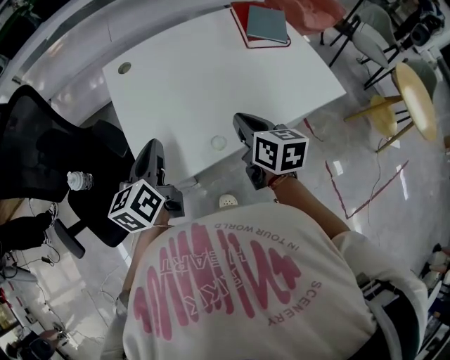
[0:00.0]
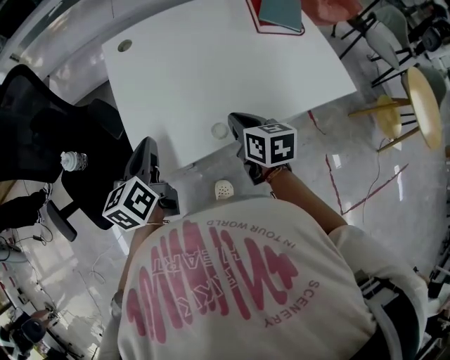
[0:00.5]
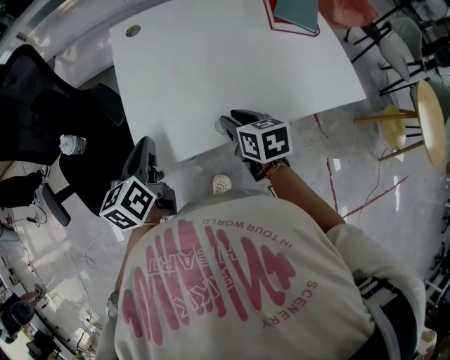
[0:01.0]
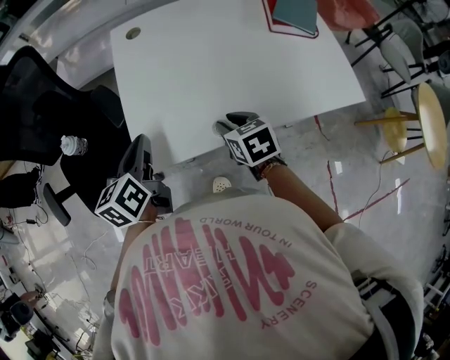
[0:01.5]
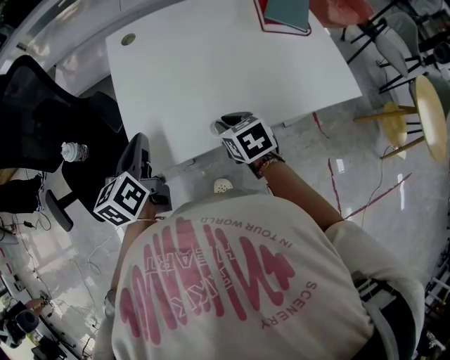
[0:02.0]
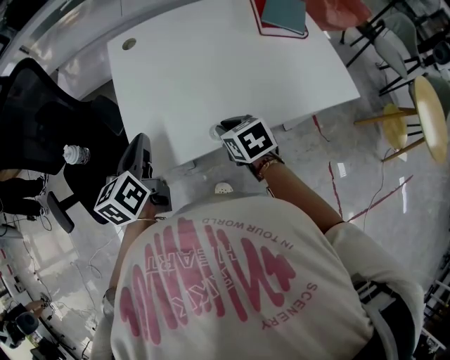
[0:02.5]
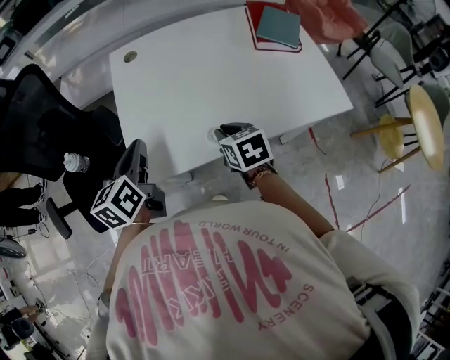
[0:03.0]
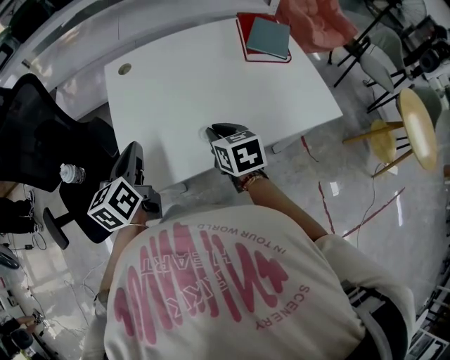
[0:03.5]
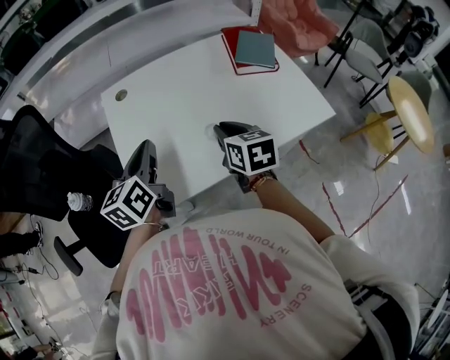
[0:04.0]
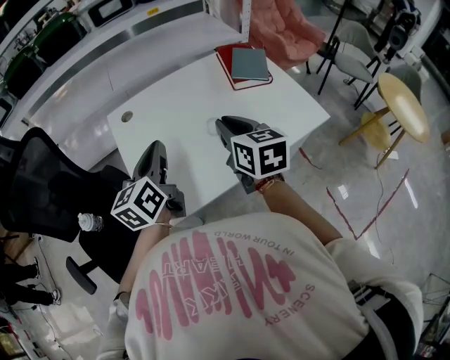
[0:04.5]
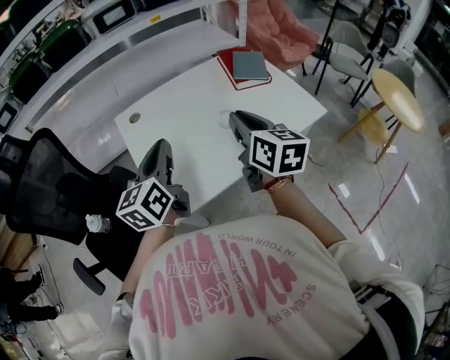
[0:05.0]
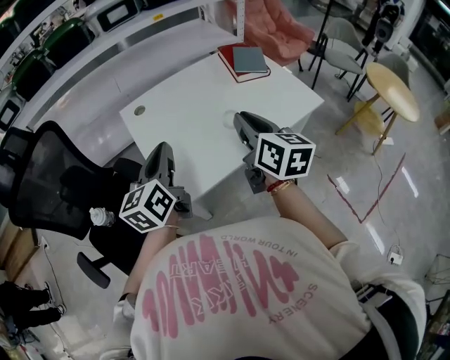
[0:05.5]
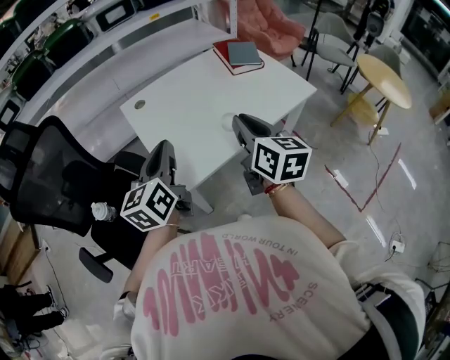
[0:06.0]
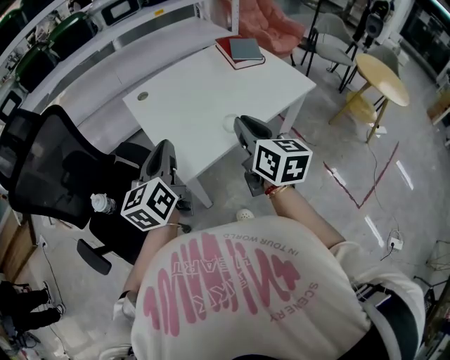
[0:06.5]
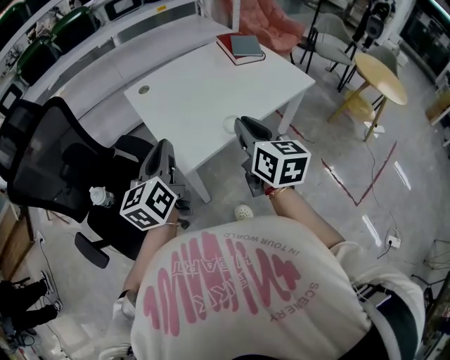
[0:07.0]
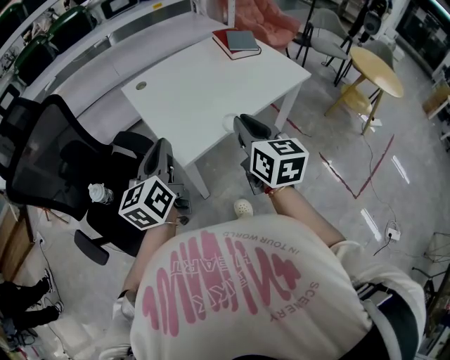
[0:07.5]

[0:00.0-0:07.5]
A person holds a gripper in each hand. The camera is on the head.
0:00.0 to 0:02.0: The right gripper shifts approximately 15 cm downward and to the left, and turns by approximately 40 degrees, while the left gripper changes place by approximately 5 cm.
0:02.0 to 0:04.0: Both grippers travel together upward and to the right, roughly 15 cm. The right gripper turns by some 30 degrees.
0:04.0 to 0:05.5: The left gripper travels backward, upward and to the left by about 15 cm; the right gripper moves upward and backward, about 20 cm, and turns by some 30 degrees.
0:05.5 to 0:07.5: Both grippers travel together backward, about 20 cm.

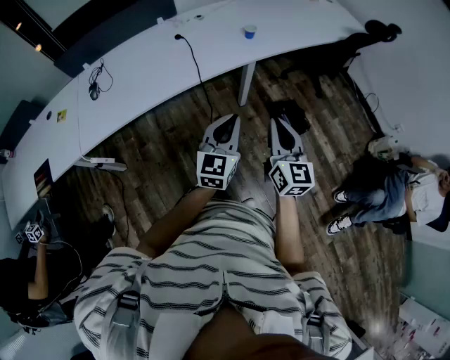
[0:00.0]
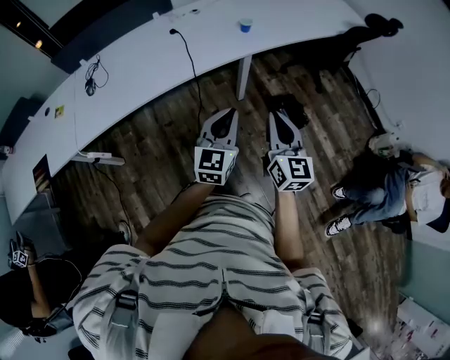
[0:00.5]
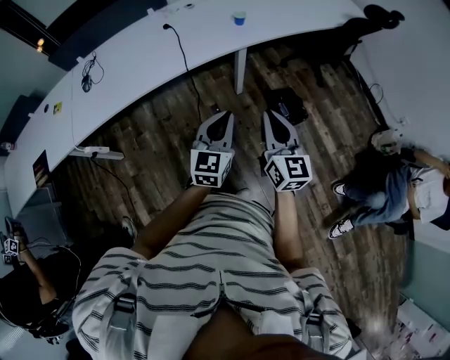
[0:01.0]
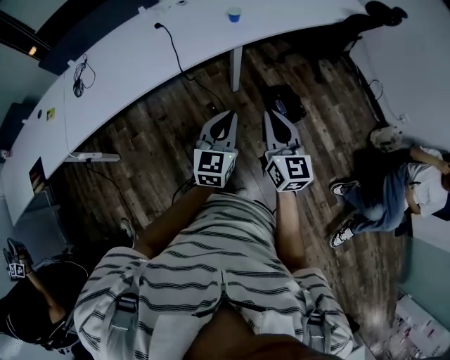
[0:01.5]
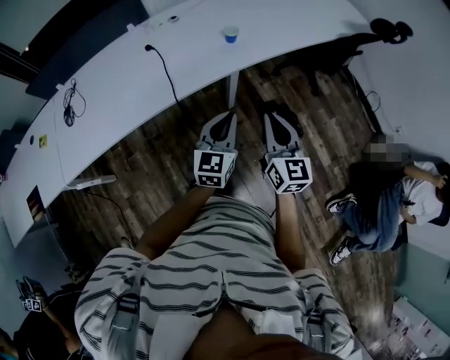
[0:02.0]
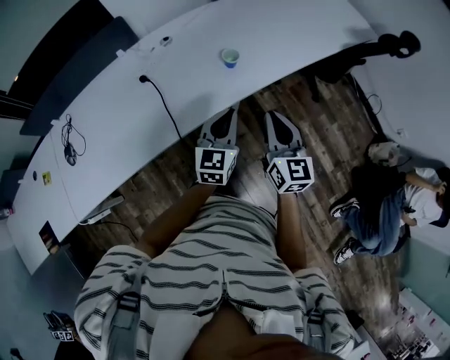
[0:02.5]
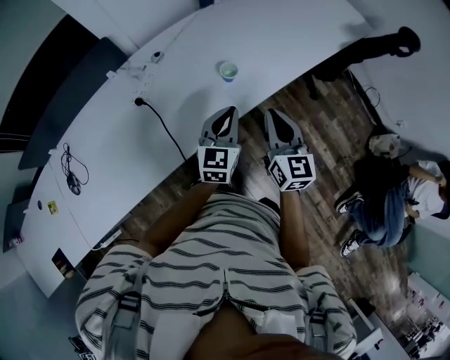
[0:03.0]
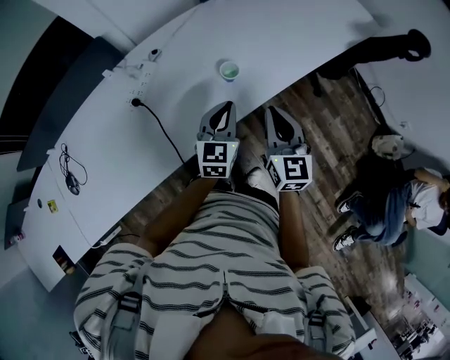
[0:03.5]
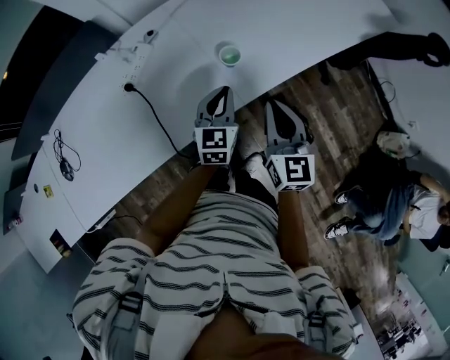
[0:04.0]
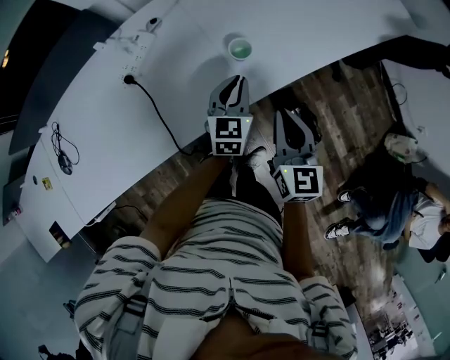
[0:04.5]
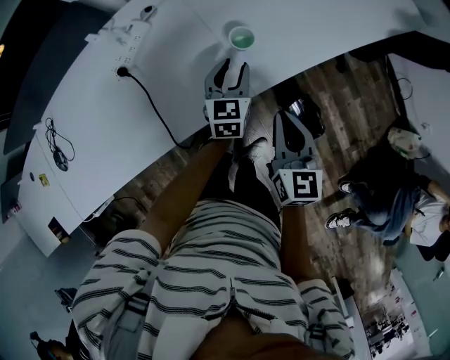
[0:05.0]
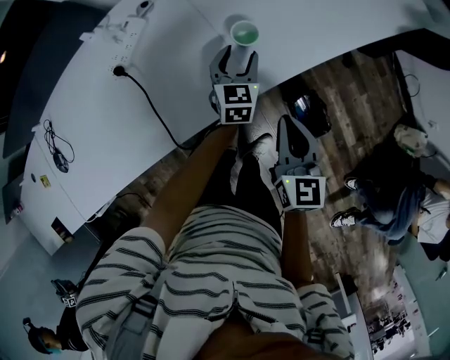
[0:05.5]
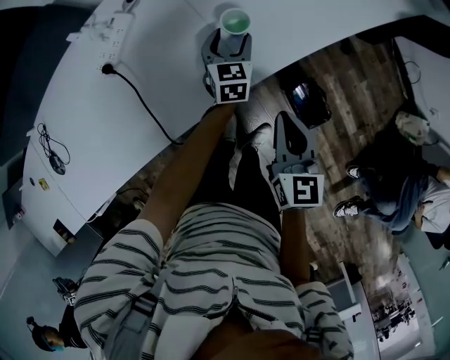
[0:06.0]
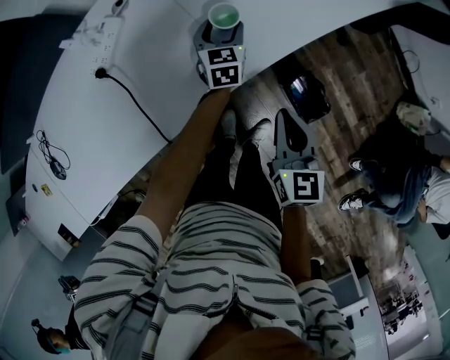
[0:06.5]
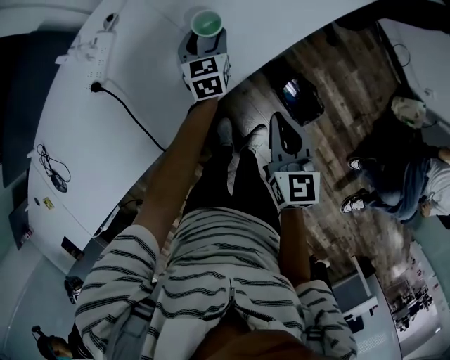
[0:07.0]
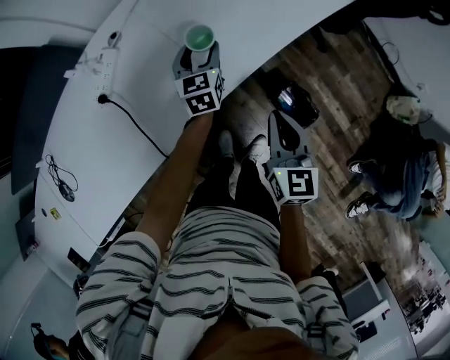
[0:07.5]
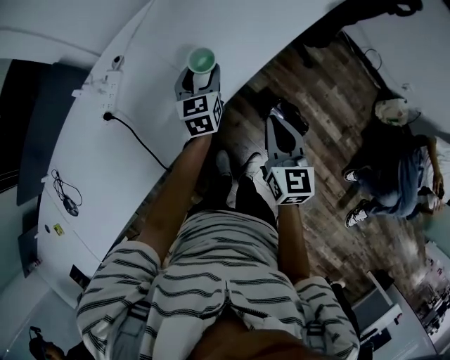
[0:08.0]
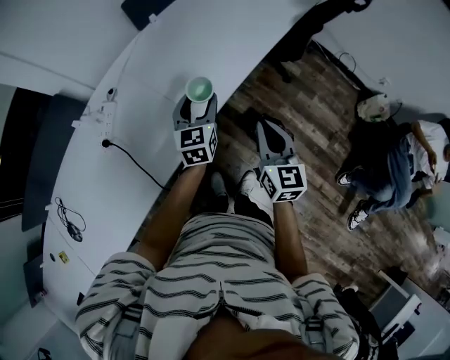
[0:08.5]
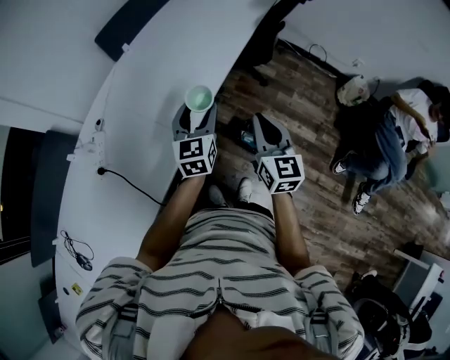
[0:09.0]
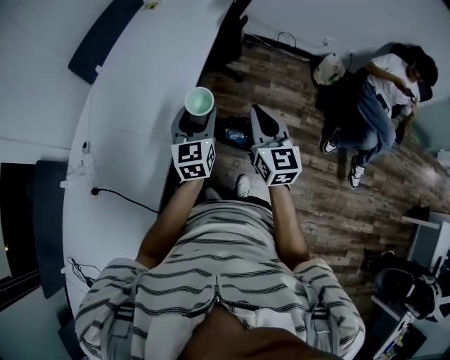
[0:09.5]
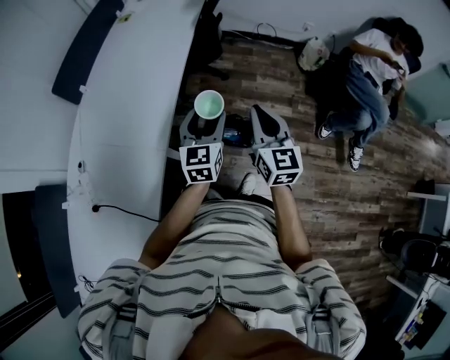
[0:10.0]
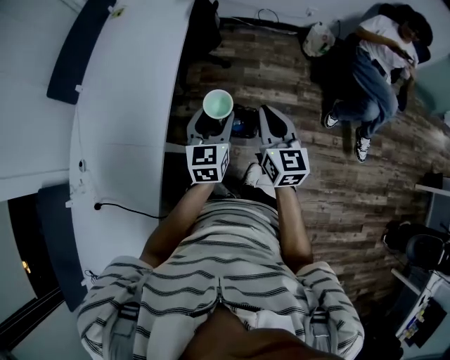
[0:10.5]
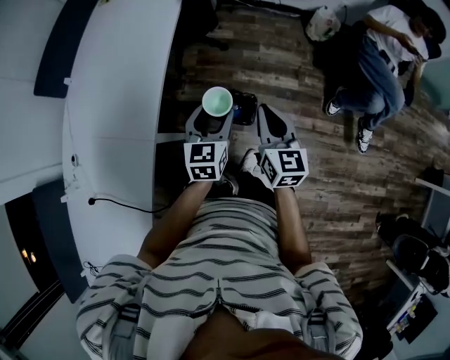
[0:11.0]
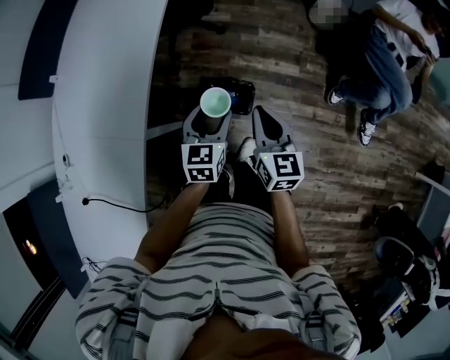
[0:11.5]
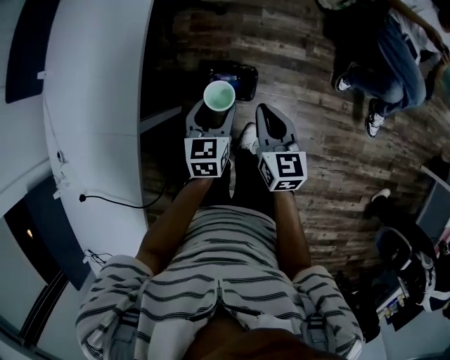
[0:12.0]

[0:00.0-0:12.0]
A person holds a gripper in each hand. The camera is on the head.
0:00.0 to 0:02.0: The left gripper is displaced forward and to the right by roughly 20 cm; the right gripper moves forward, about 20 cm.
0:02.0 to 0:04.0: Both grippers move forward, approximately 30 cm.
0:04.0 to 0:06.0: The right gripper goes about 10 cm downward. Meanwhile the left gripper heads downward and forward, covering some 20 cm, and opens.
0:06.0 to 0:08.0: The left gripper travels upward by roughly 15 cm, while the right gripper heads to the right and upward, covering roughly 10 cm.
0:08.0 to 0:10.0: The right gripper ends up about 20 cm from where it was, and swivels some 30 degrees, while the left gripper ends up about 30 cm from where it was, and changes its angle by some 40 degrees.
0:10.0 to 0:12.0: Both grippers travel together downward and to the right, some 20 cm. The left gripper turns by about 20 degrees, while the right gripper rotates about 20 degrees.

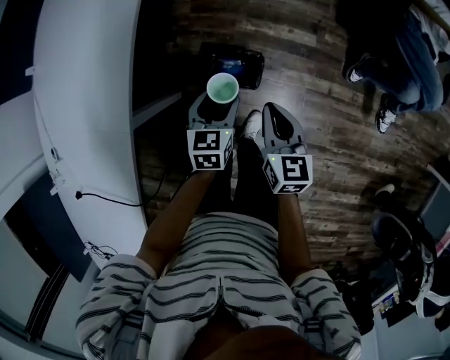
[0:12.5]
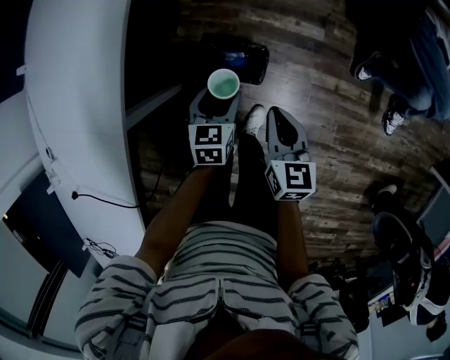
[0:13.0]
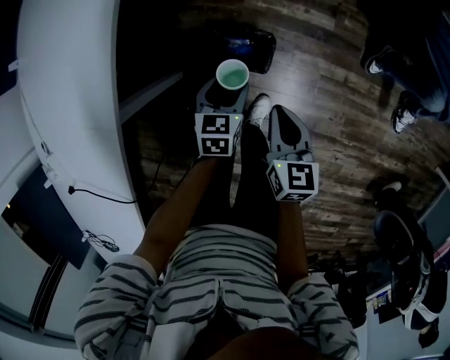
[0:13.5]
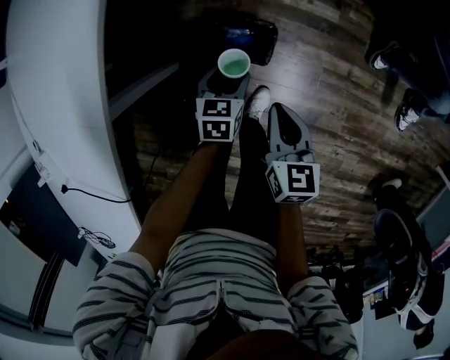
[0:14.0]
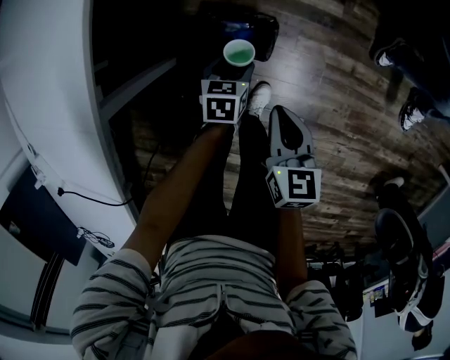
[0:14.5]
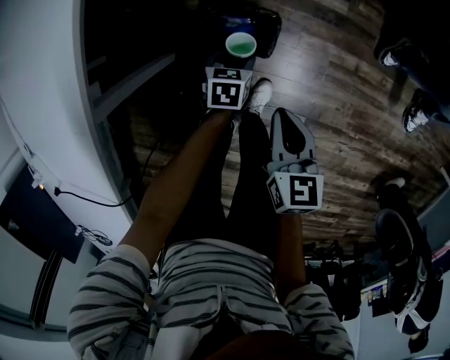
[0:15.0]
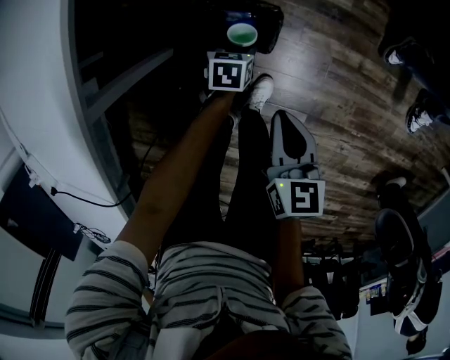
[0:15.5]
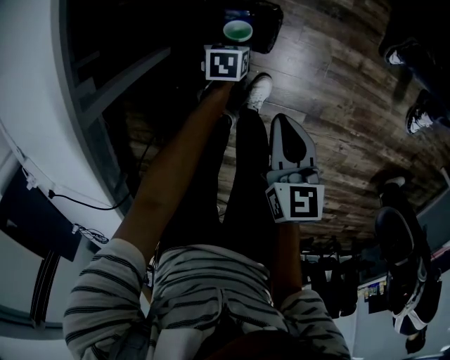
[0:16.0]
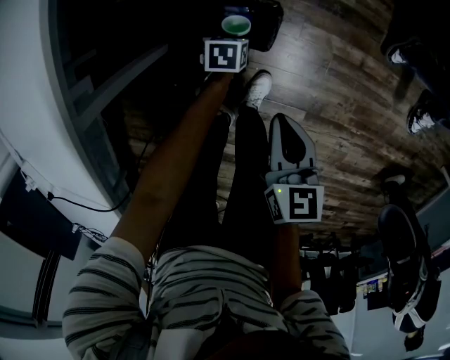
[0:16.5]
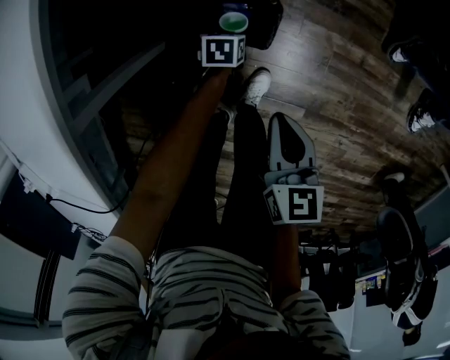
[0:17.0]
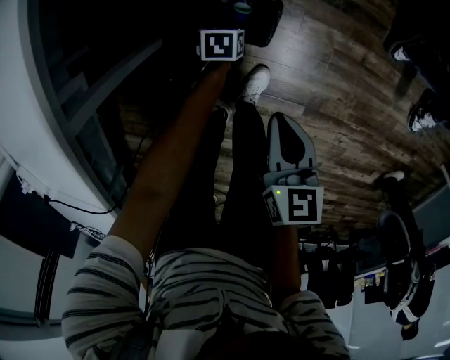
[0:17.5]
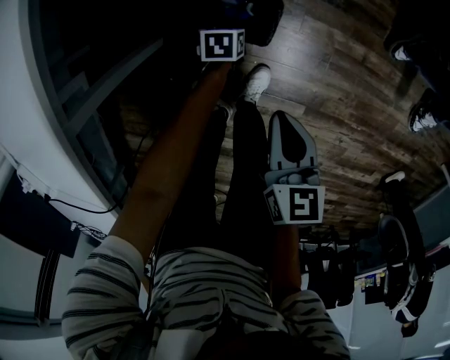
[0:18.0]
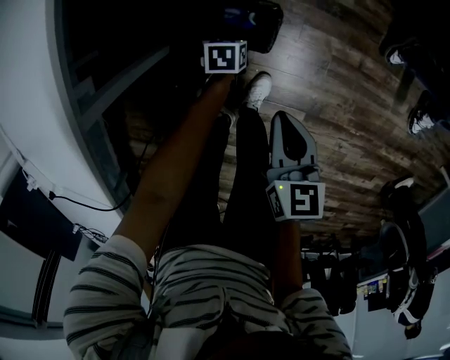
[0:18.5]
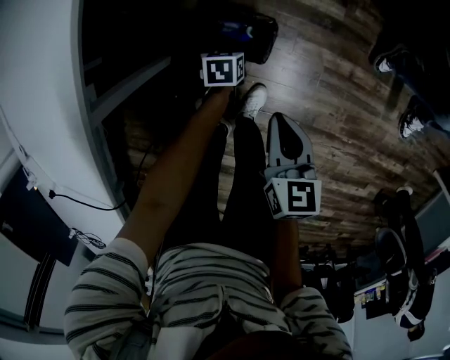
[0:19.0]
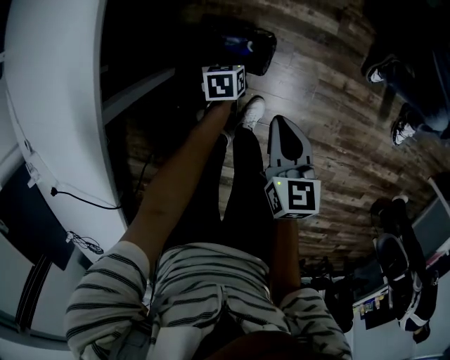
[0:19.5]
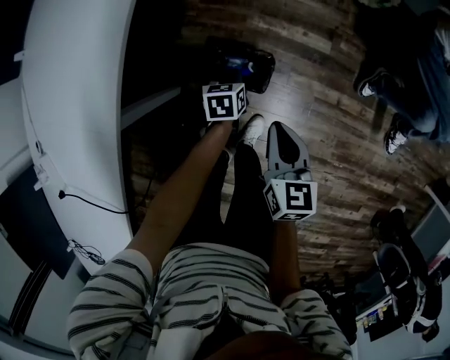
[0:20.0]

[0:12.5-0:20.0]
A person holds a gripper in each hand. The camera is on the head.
0:12.5 to 0:14.5: The left gripper travels downward by approximately 20 cm; the right gripper is displaced downward by about 10 cm.
0:14.5 to 0:16.5: The left gripper heads downward, covering about 15 cm.
0:16.5 to 0:18.0: There are only small adjustments of the grippers.
0:18.0 to 0:20.0: The left gripper travels upward by approximately 20 cm, changes its angle by some 20 degrees, and closes its fingers, while the right gripper moves upward, about 15 cm.
